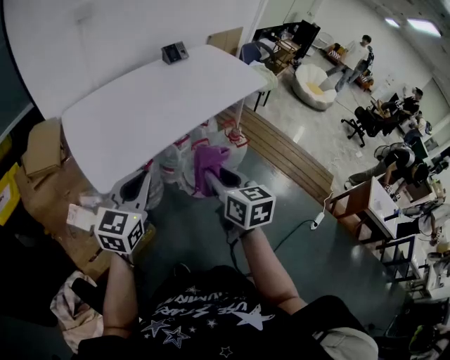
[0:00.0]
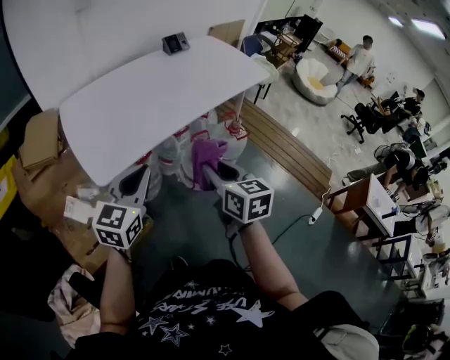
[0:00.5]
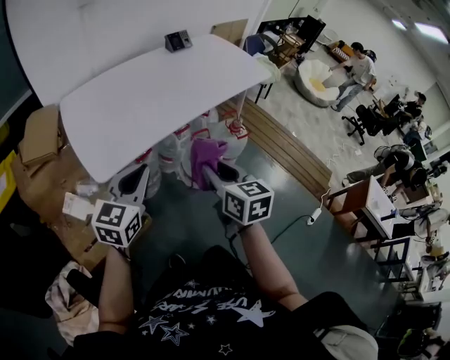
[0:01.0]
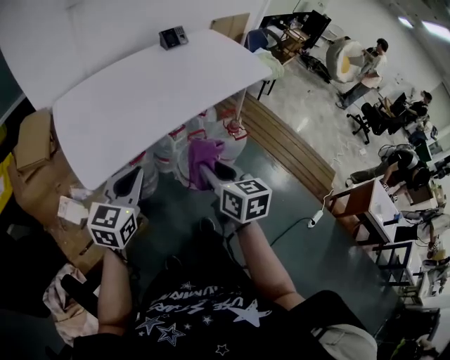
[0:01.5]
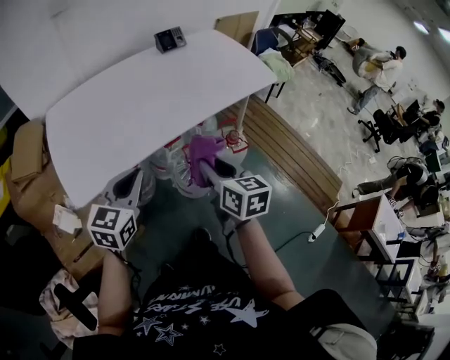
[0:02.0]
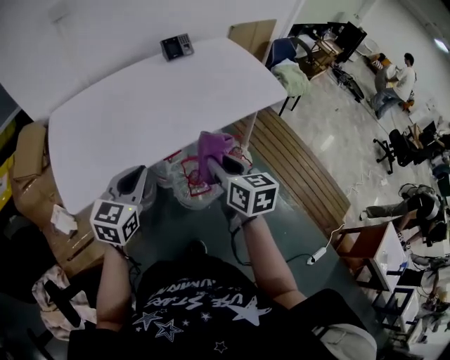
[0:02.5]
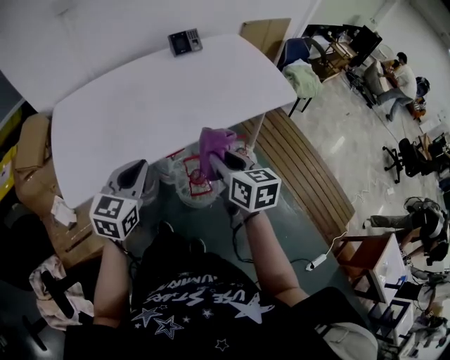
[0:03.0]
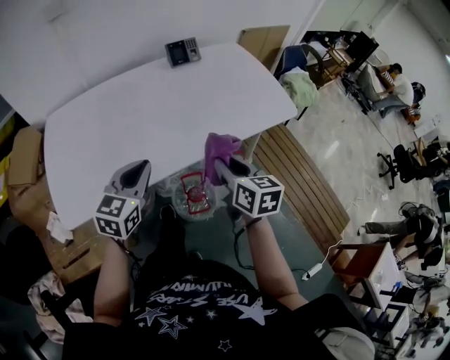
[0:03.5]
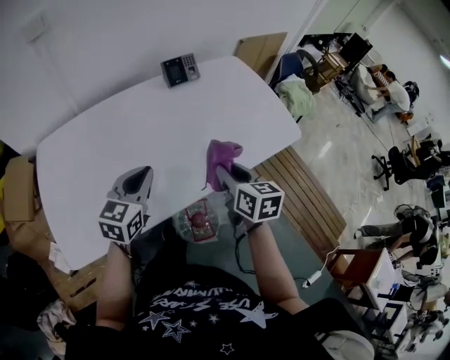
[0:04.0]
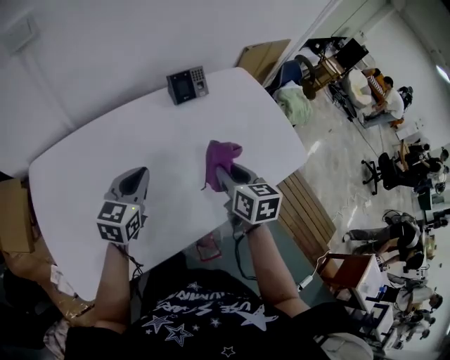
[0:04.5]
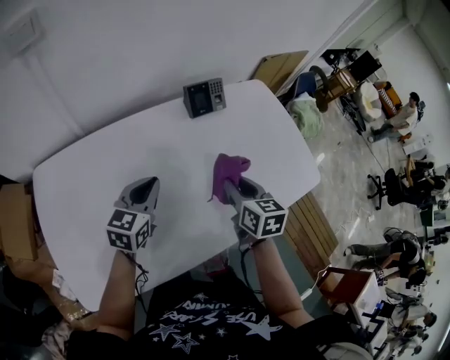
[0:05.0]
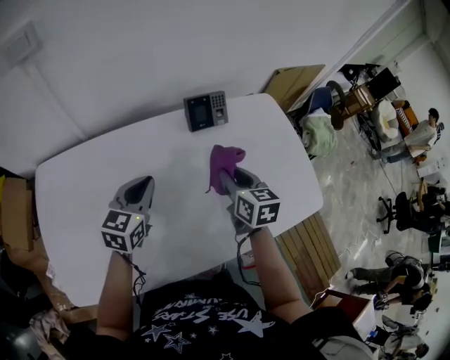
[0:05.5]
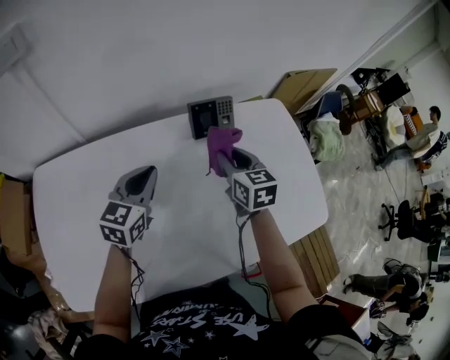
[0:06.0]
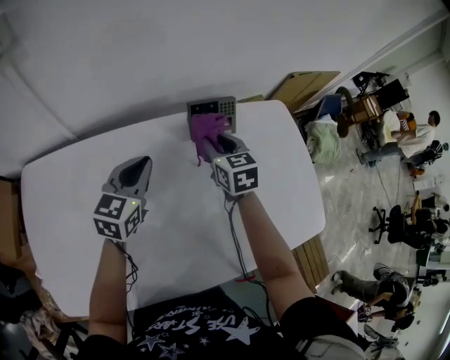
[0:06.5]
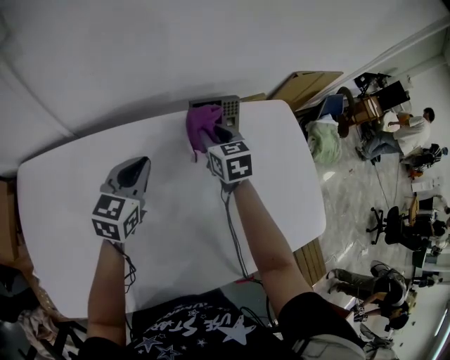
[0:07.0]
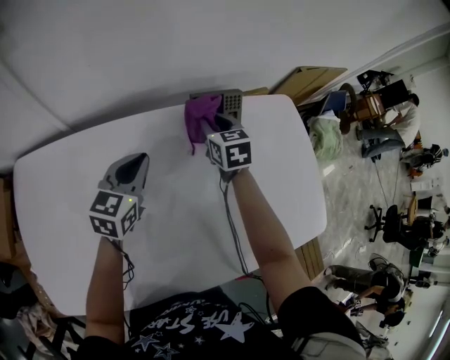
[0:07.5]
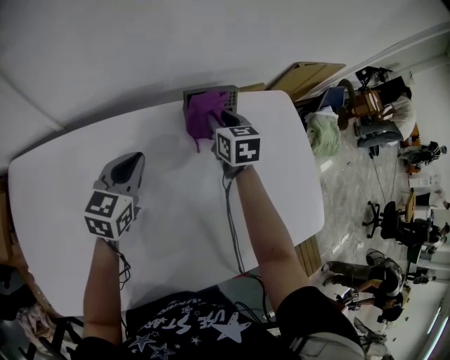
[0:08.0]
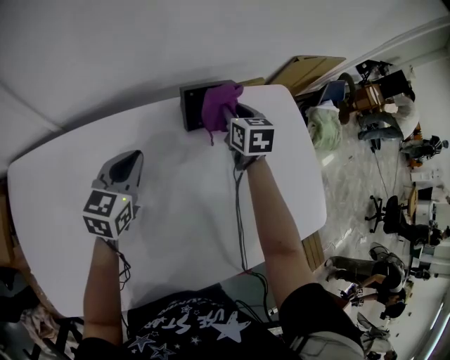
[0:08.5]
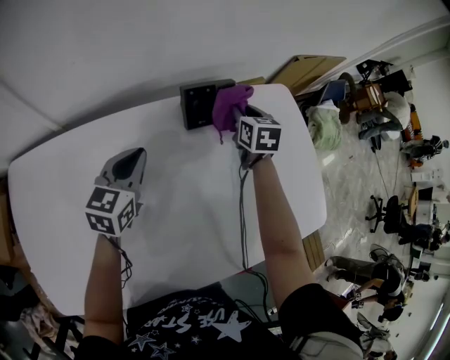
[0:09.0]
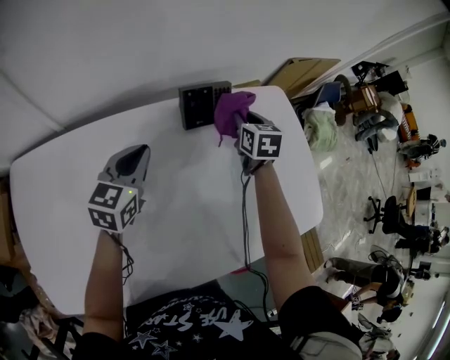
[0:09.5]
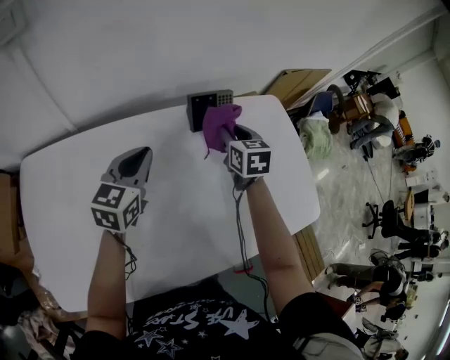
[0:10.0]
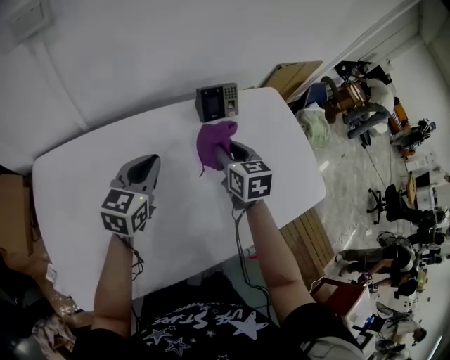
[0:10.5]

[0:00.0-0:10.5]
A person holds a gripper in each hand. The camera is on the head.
0:00.0 to 0:02.0: Both grippers move forward and to the right, about 20 cm.
0:02.0 to 0:04.0: Both grippers move forward, some 30 cm.
0:04.0 to 0:06.5: The grippers both shift forward by about 35 cm. The right gripper rotates approximately 30 degrees.
0:06.5 to 0:08.5: The right gripper travels forward and to the right by about 10 cm.
0:08.5 to 0:10.5: The left gripper moves backward and upward, roughly 10 cm. The right gripper heads backward, covering about 20 cm.

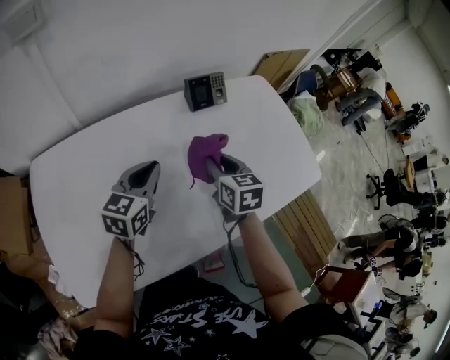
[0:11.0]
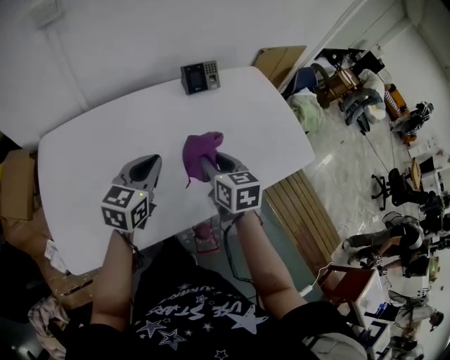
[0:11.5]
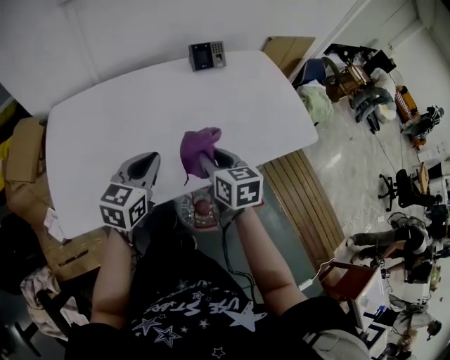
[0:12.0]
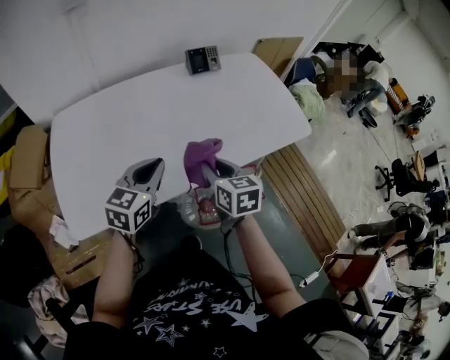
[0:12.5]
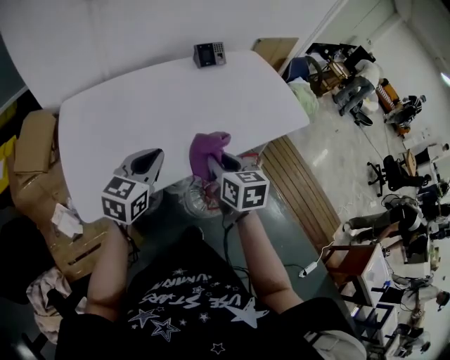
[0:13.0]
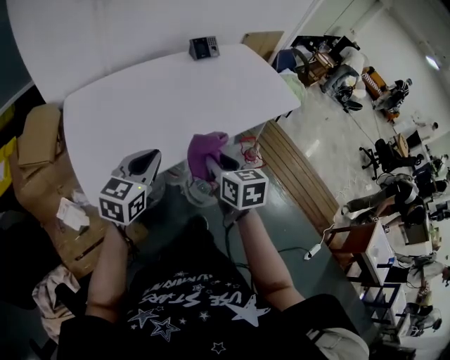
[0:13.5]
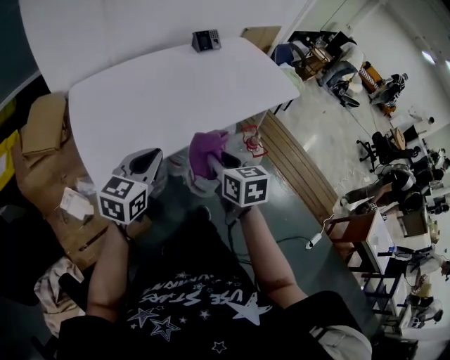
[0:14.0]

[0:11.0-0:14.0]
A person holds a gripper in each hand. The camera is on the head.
0:11.0 to 0:12.5: The grippers both shift backward by roughly 25 cm.
0:12.5 to 0:14.0: The right gripper heads backward, covering some 25 cm; the left gripper moves backward and to the left, about 25 cm.

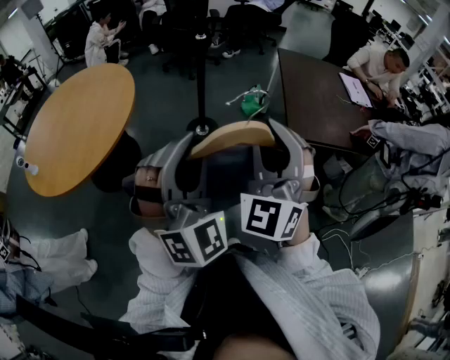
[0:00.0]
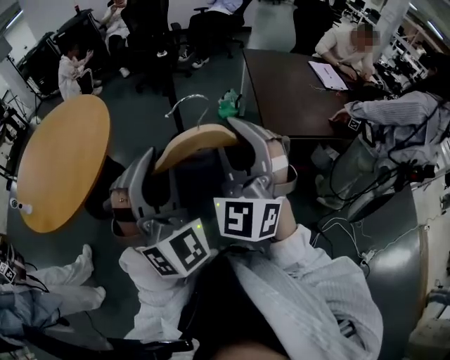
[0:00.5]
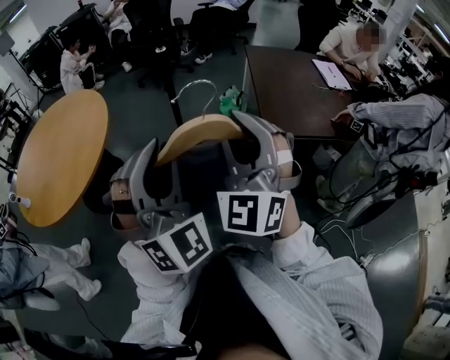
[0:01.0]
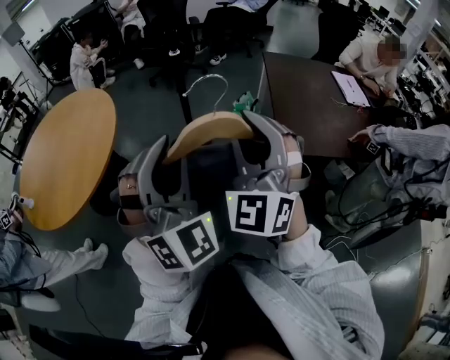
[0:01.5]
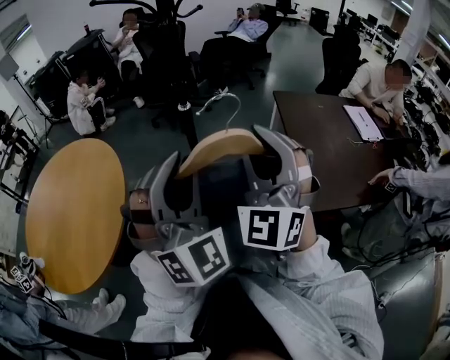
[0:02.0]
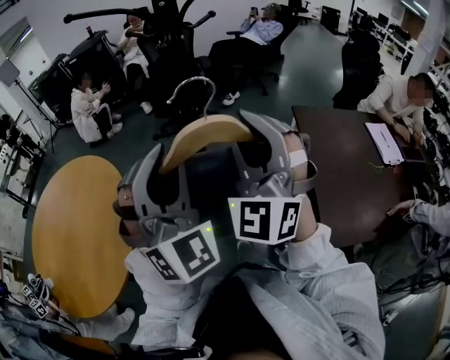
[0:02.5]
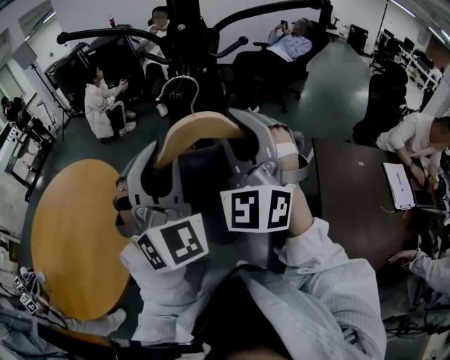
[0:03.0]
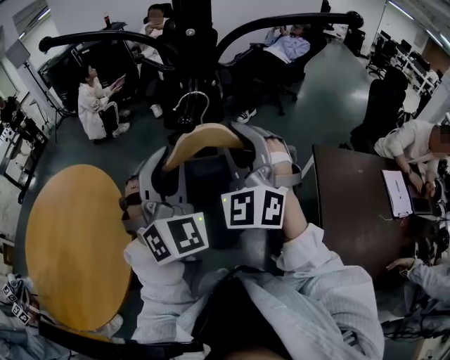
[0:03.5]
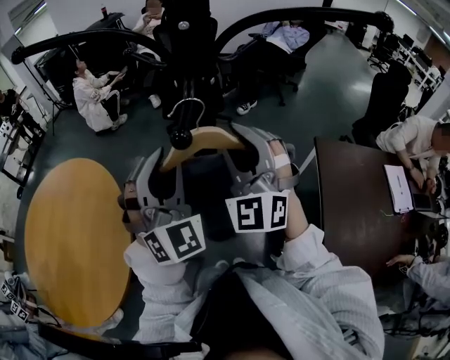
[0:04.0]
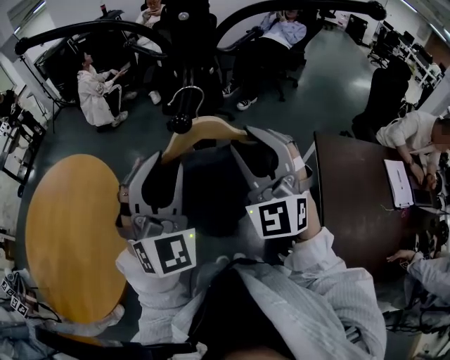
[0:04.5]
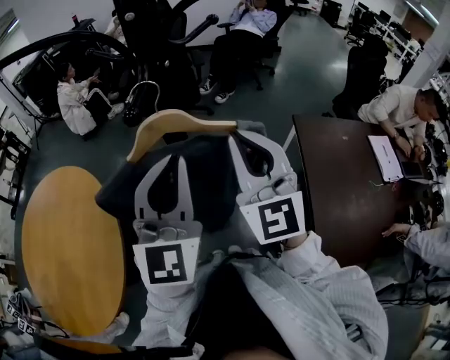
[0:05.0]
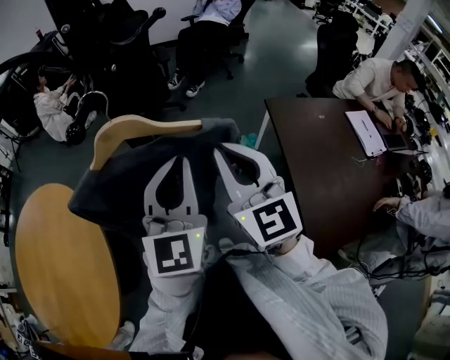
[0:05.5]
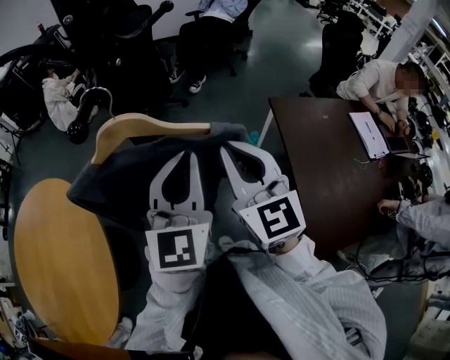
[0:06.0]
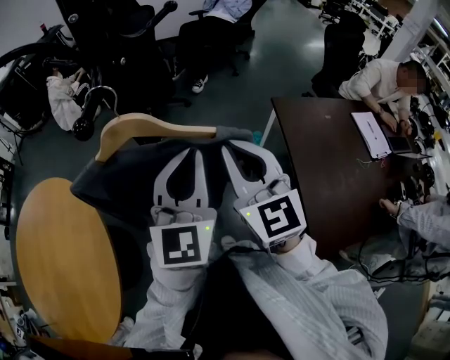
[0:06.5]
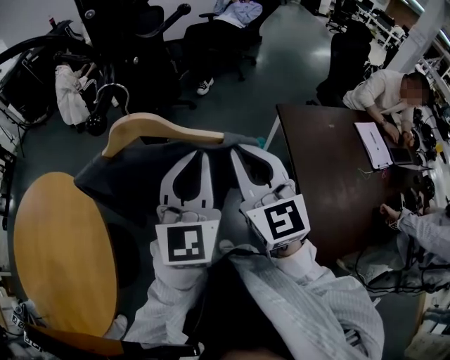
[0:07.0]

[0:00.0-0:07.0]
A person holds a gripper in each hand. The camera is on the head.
0:00.0 to 0:02.0: Both grippers move forward, roughly 35 cm.
0:02.0 to 0:03.5: The two grippers travel together, forward, some 40 cm.
0:03.5 to 0:05.0: Both grippers travel together backward and to the right, about 10 cm. The right gripper swivels approximately 30 degrees. Meanwhile the left gripper rotates about 40 degrees.
0:05.0 to 0:07.0: The right gripper moves downward, roughly 5 cm. The left gripper moves to the right and downward, approximately 10 cm.

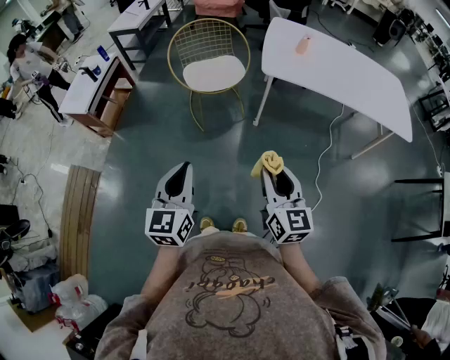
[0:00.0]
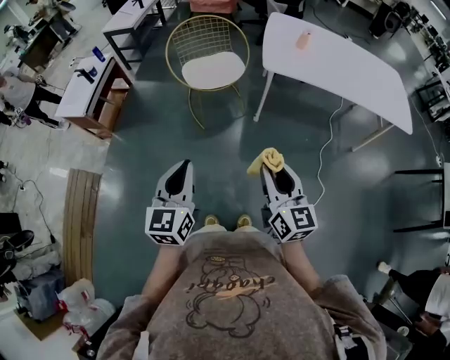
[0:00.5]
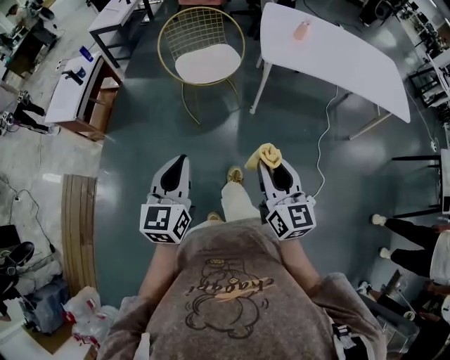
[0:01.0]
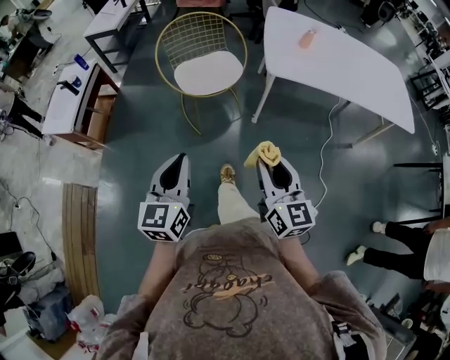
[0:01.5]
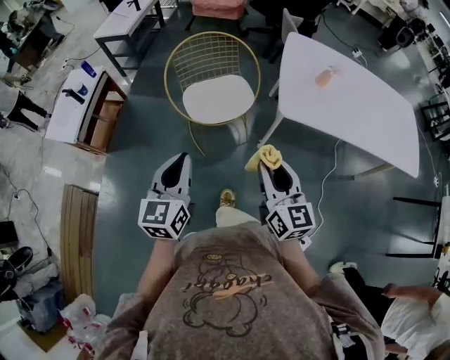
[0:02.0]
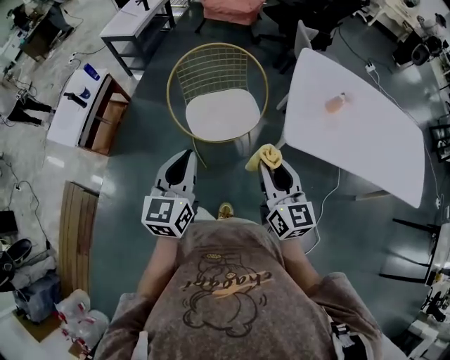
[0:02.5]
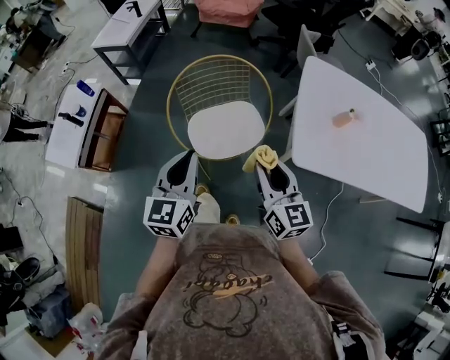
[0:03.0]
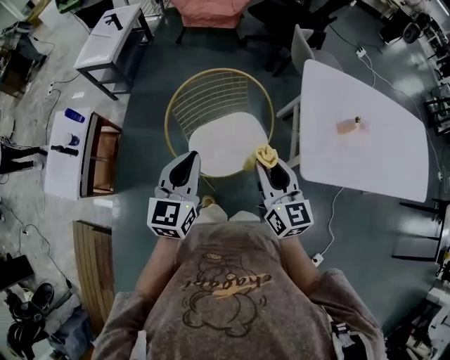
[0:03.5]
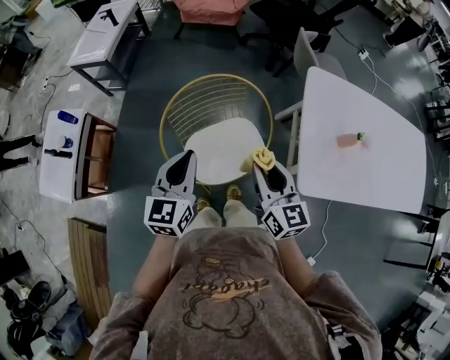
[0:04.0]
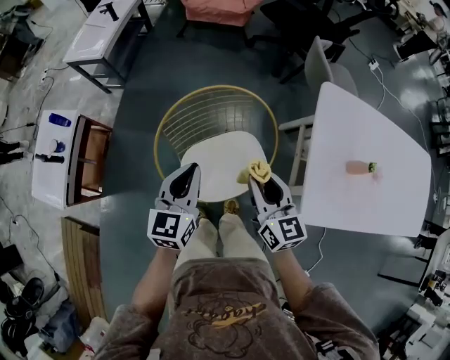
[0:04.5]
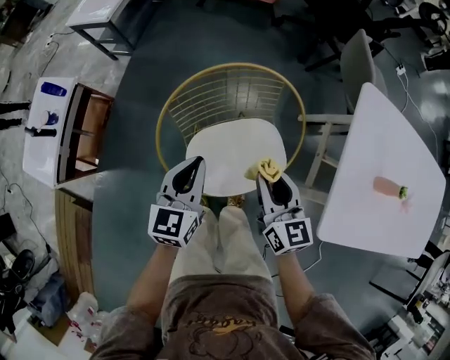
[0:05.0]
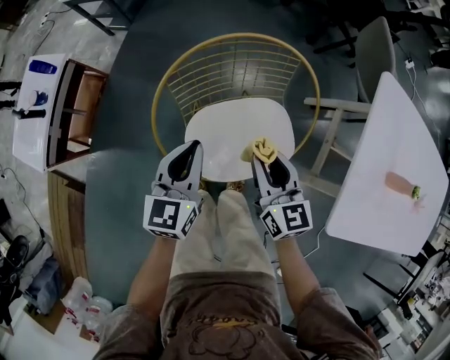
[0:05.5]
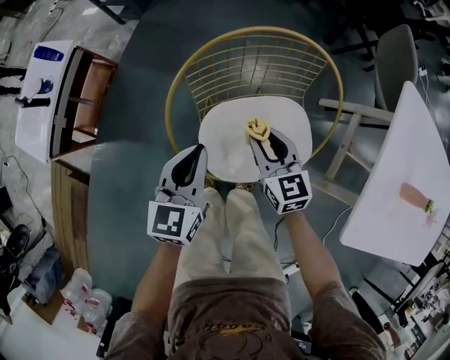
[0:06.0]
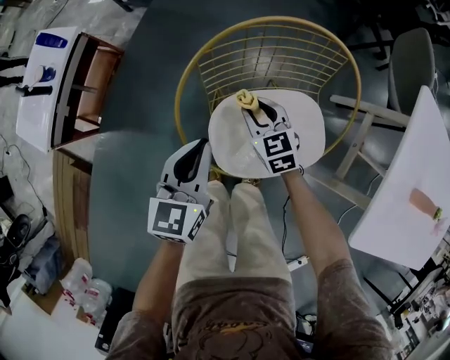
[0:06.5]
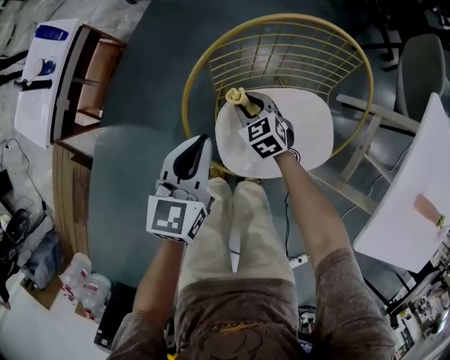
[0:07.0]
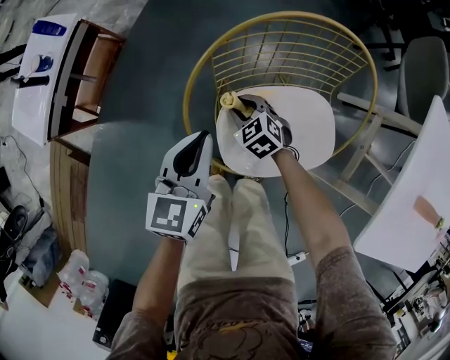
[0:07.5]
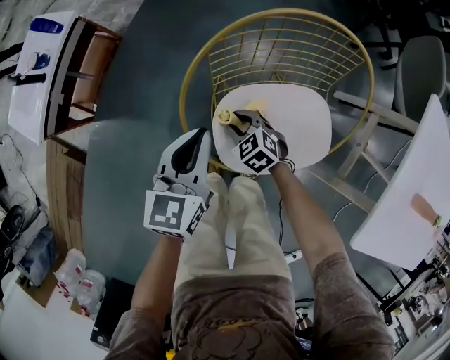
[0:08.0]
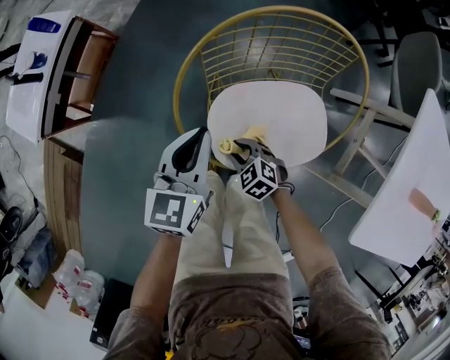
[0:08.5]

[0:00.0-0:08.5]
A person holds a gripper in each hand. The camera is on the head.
0:00.0 to 0:02.0: Both grippers travel together forward, approximately 30 cm.
0:02.0 to 0:04.0: Both grippers move forward, about 40 cm.
0:04.0 to 0:06.5: The right gripper goes some 50 cm downward, forward and to the left, and changes its angle by about 40 degrees, while the left gripper goes about 25 cm downward.
0:06.5 to 0:08.5: The right gripper shifts some 20 cm backward, downward and to the left, and swivels some 30 degrees.
